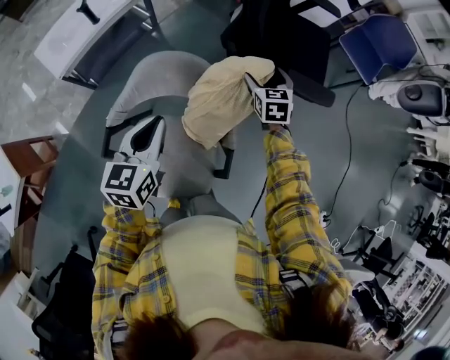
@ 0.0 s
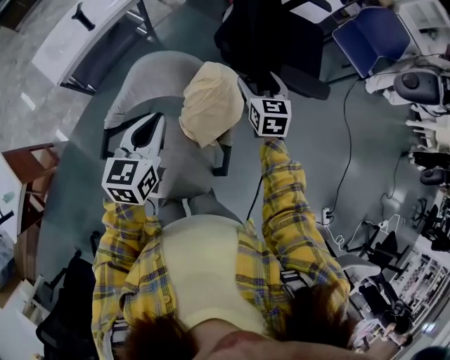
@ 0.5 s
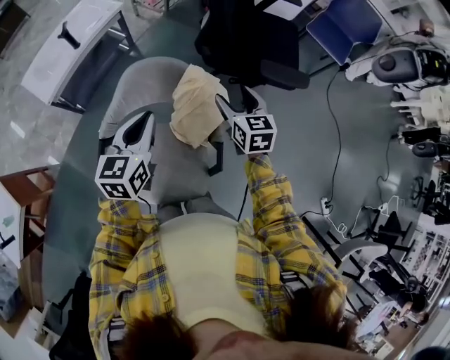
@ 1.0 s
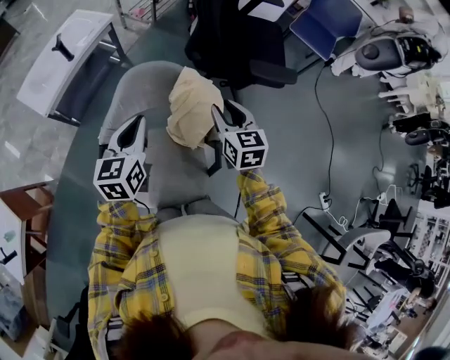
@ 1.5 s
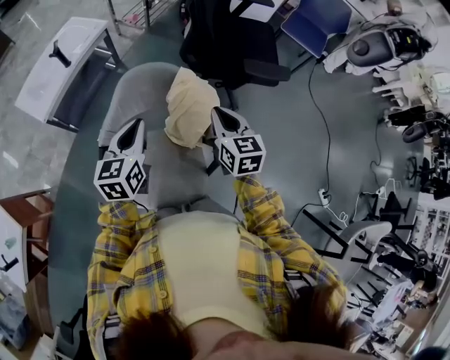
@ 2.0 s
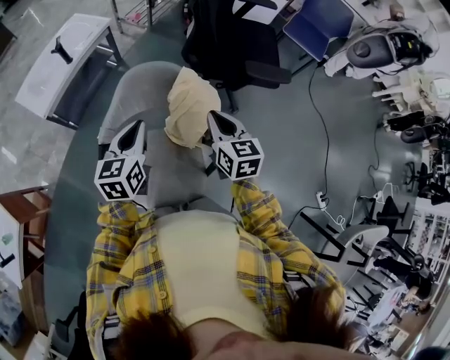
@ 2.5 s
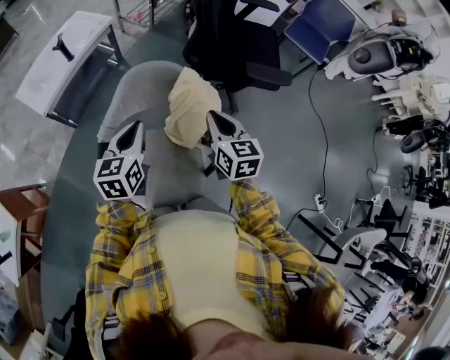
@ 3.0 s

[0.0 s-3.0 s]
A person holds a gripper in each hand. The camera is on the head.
0.0 to 1.5 s: The right gripper moves backward and upward, about 20 cm, and closes up.
1.5 to 3.0 s: The right gripper moves roughly 5 cm, and closes.

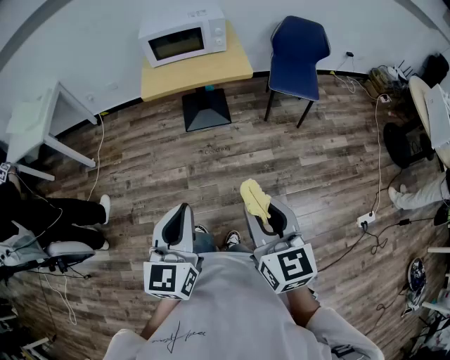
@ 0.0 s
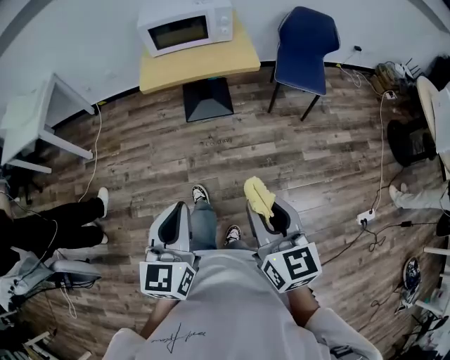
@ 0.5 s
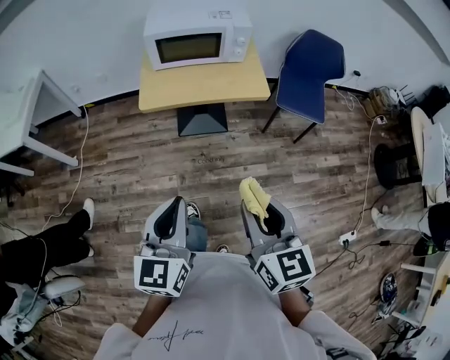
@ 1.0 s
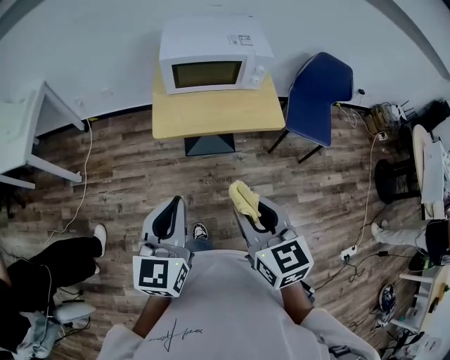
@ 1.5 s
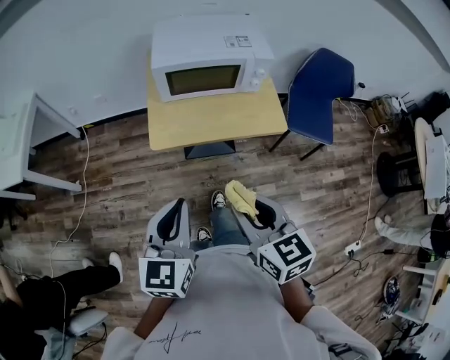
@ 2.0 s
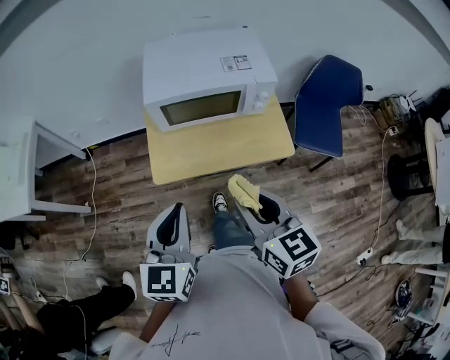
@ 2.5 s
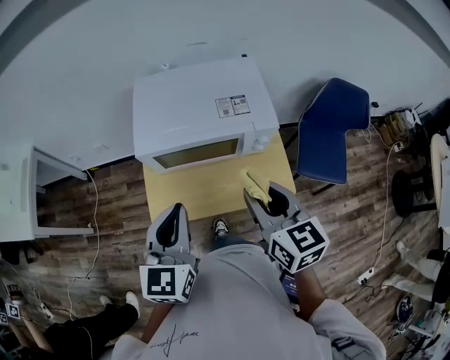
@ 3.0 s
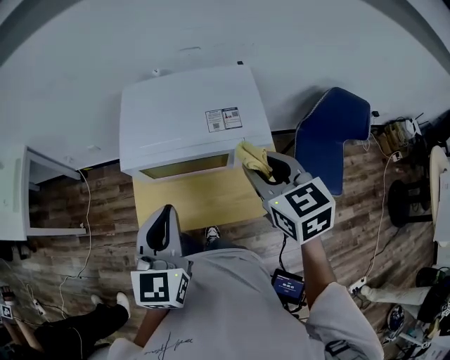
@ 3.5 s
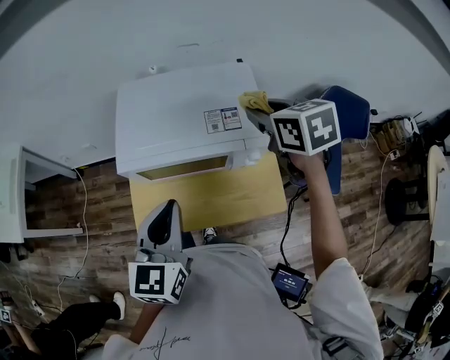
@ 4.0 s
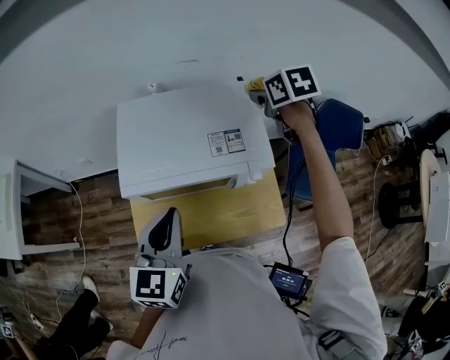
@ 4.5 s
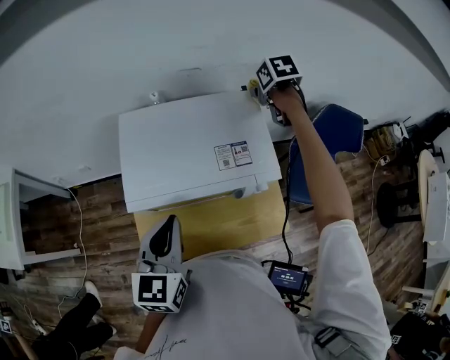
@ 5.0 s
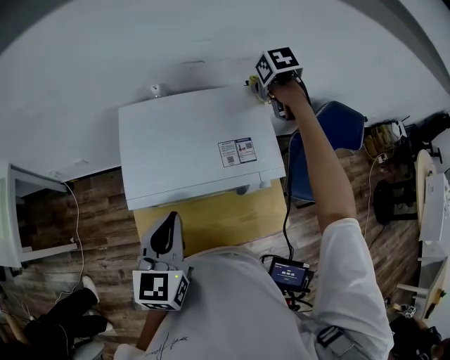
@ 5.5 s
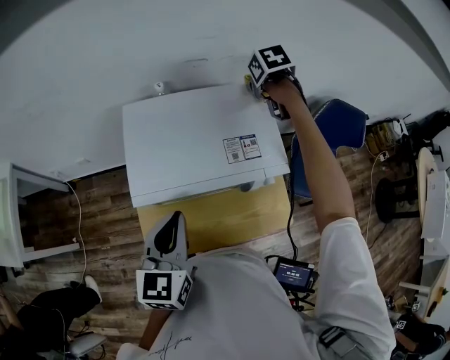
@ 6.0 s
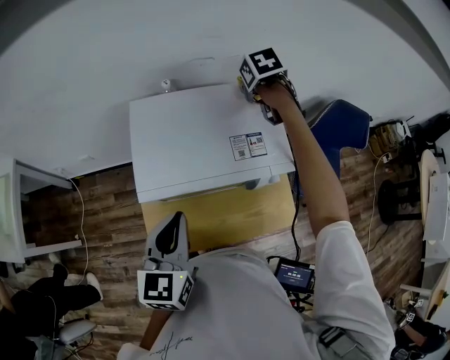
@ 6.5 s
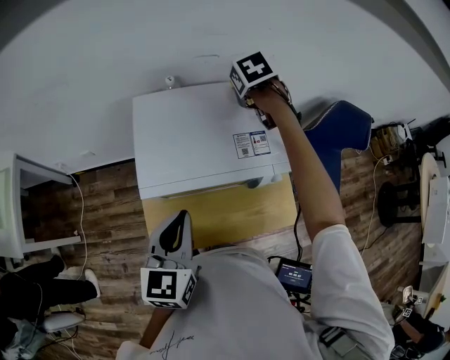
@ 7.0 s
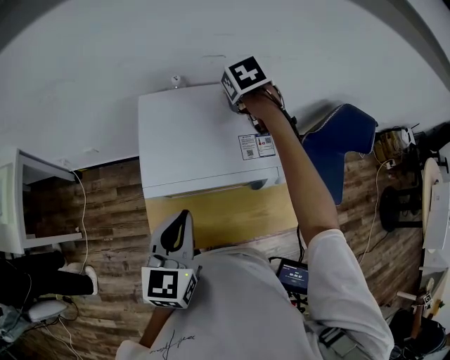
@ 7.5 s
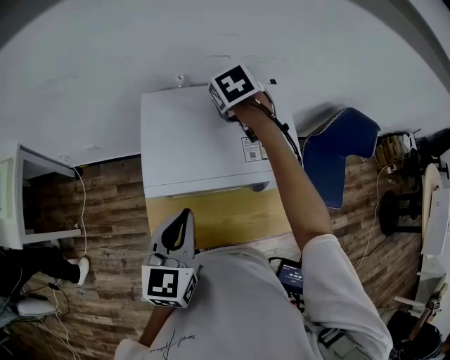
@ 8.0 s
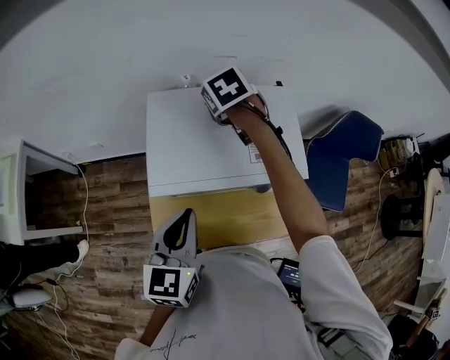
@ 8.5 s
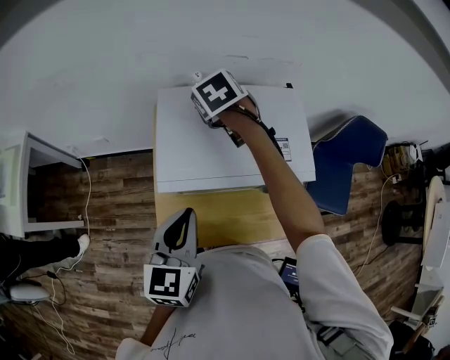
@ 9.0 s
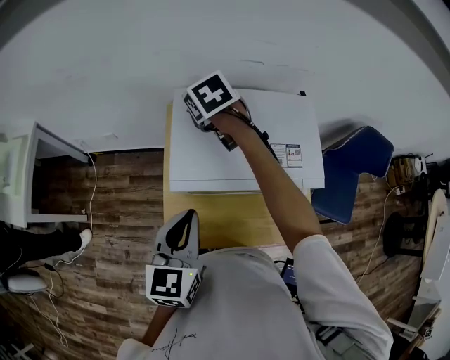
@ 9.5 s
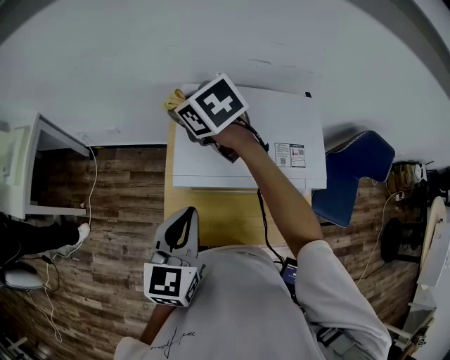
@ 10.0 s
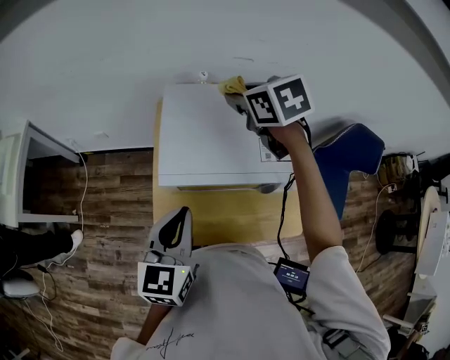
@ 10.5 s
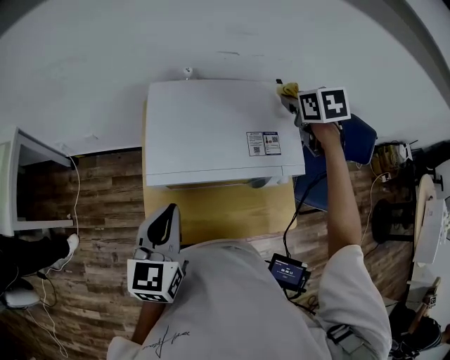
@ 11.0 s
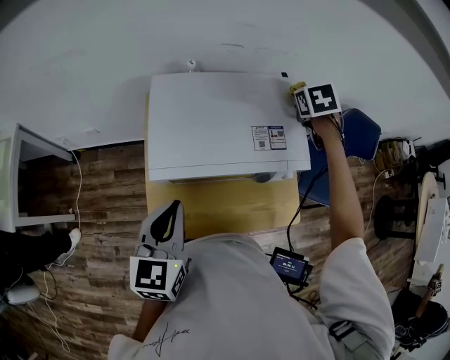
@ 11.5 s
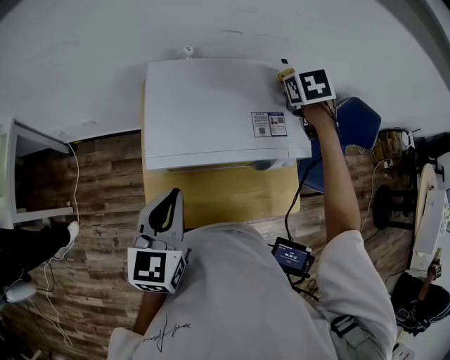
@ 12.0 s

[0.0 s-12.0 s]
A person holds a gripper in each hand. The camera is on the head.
0.0 to 2.0 s: The pair of grippers is taken forward, some 40 cm.
2.0 to 4.0 s: The left gripper shifts roughly 35 cm forward. Meanwhile the right gripper is displaced forward by approximately 50 cm.
4.0 to 6.0 s: The right gripper heads forward, covering roughly 20 cm, and swivels approximately 30 degrees. The left gripper goes about 10 cm forward and to the left.
6.0 to 8.0 s: The right gripper shifts some 15 cm to the left, and swivels some 20 degrees.
8.0 to 10.0 s: The right gripper changes place by roughly 25 cm, and turns by approximately 30 degrees; the left gripper ends up about 5 cm from where it was.
10.0 to 12.0 s: The right gripper moves roughly 40 cm, and swivels about 40 degrees.

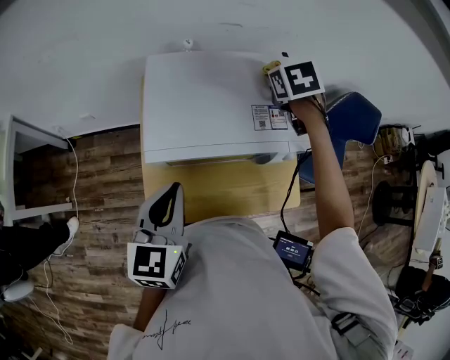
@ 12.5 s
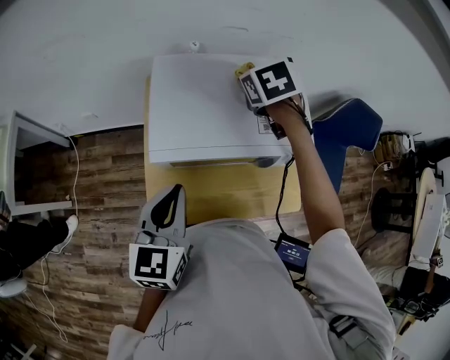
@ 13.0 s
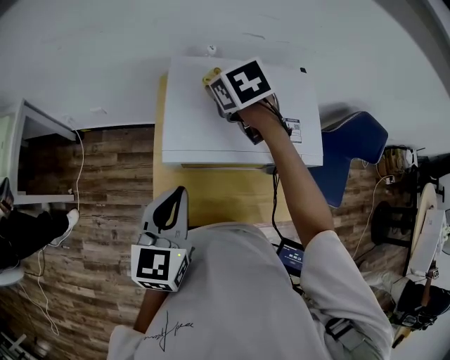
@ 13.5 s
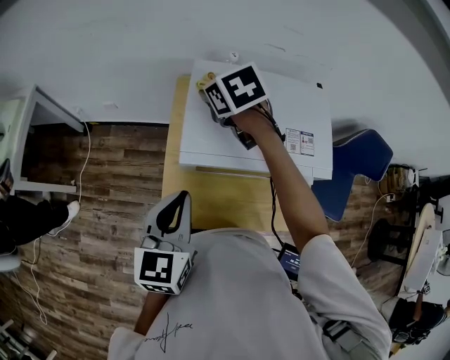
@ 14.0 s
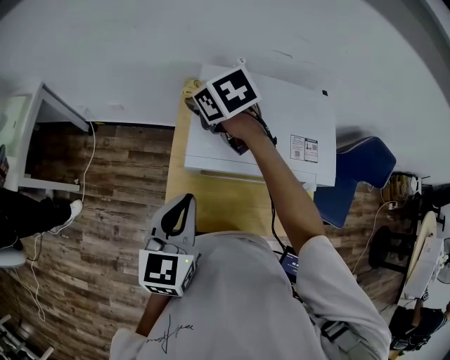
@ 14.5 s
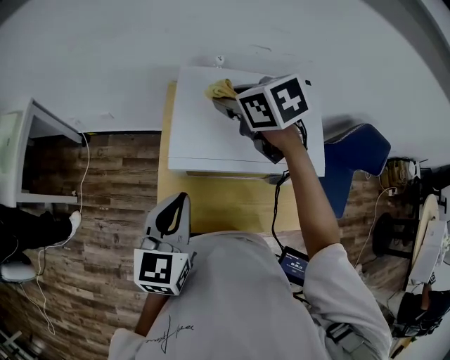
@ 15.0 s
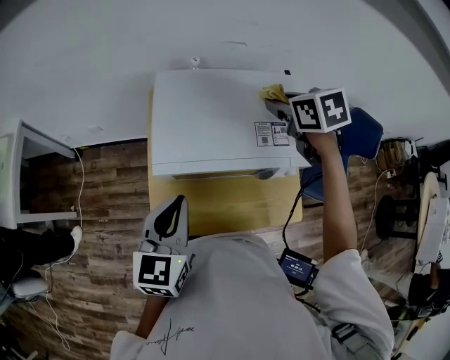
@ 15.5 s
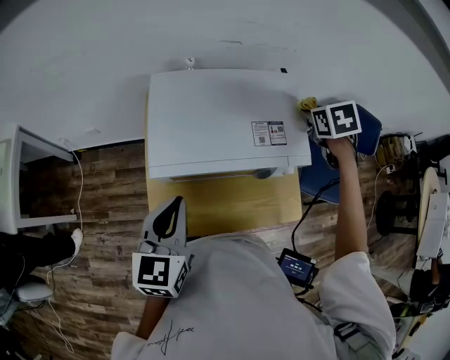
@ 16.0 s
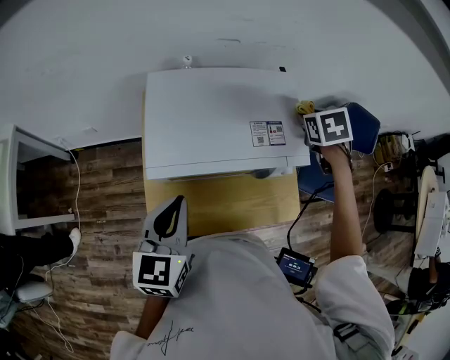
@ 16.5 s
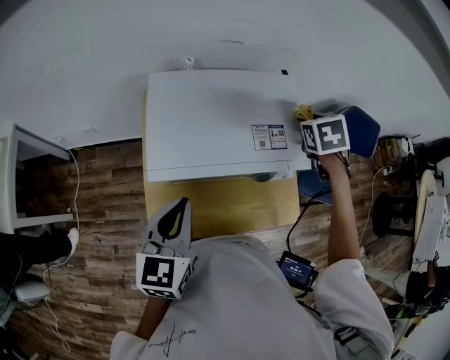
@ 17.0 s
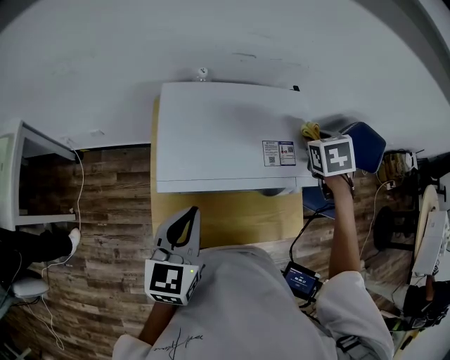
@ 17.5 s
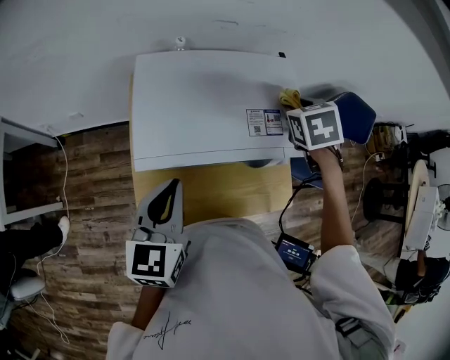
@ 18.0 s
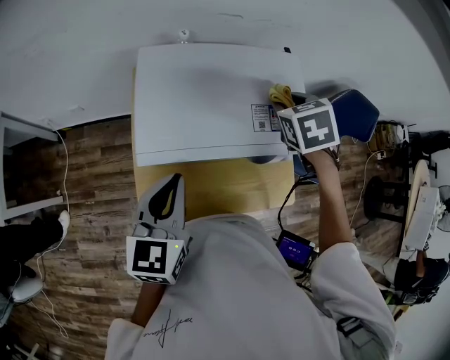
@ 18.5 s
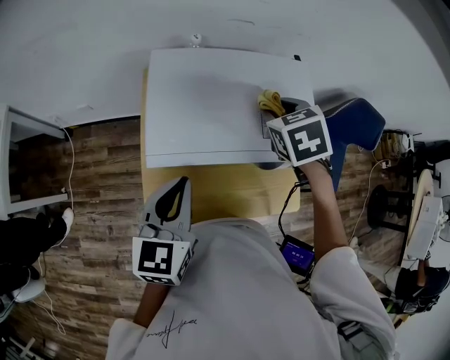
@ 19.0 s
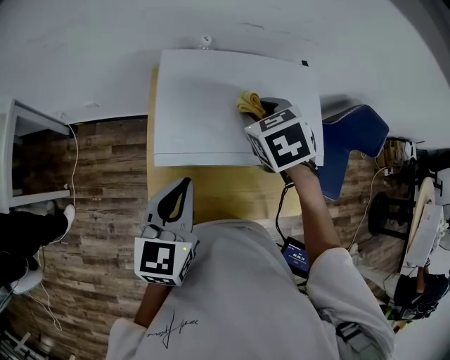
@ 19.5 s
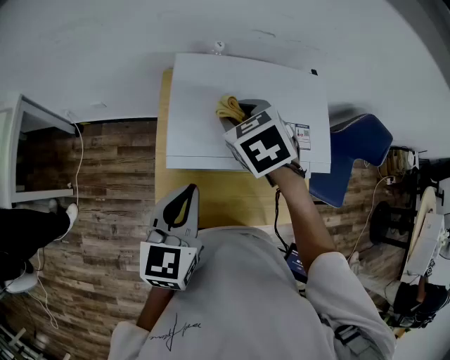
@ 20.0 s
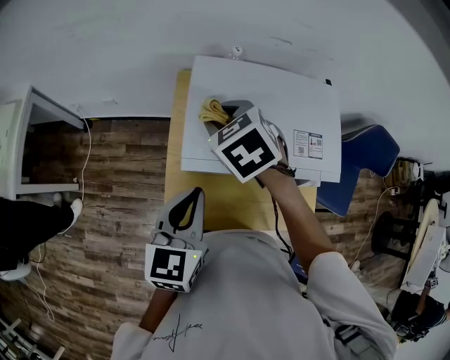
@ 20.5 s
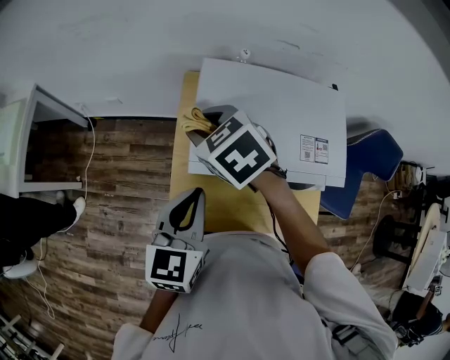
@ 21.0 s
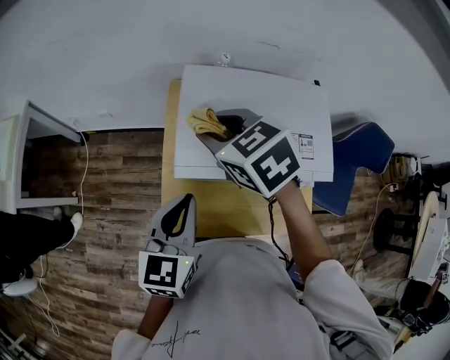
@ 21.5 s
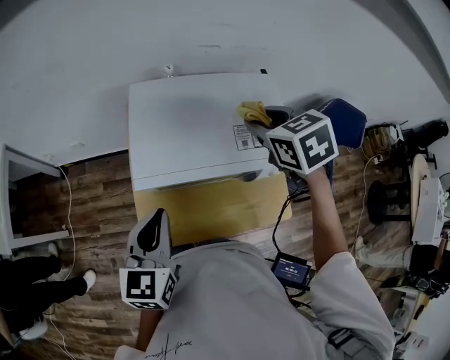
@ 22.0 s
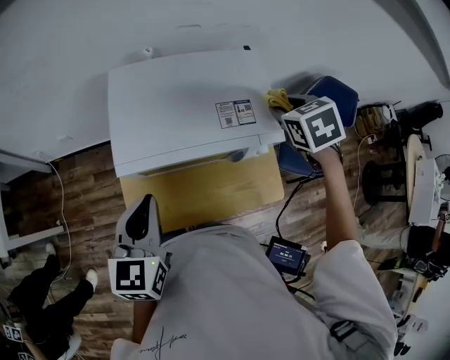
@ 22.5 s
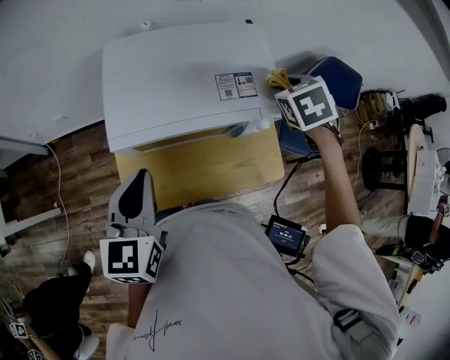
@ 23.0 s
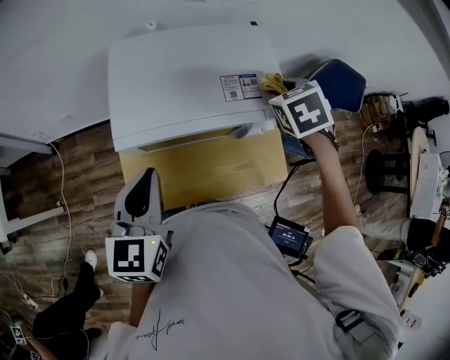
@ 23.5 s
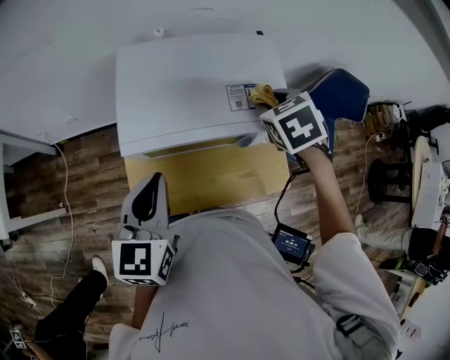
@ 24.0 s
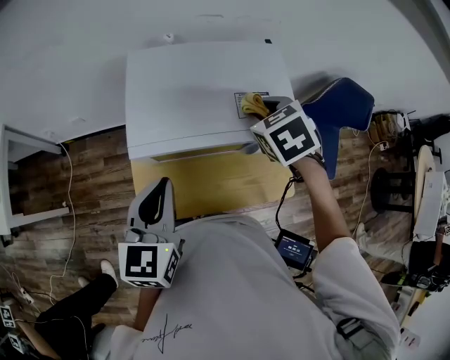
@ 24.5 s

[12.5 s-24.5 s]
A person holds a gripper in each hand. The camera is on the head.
12.5 to 14.5 s: The left gripper ends up approximately 5 cm from where it was, while the right gripper moves some 35 cm, and swivels roughly 40 degrees.
14.5 to 16.5 s: The left gripper moves approximately 5 cm. Meanwhile the right gripper shifts by roughly 40 cm, and swivels some 40 degrees.
16.5 to 18.5 s: The right gripper heads to the left, covering some 10 cm.
18.5 to 20.5 s: The right gripper travels to the left by roughly 30 cm, and rotates some 30 degrees; the left gripper shifts by some 5 cm.
20.5 to 22.5 s: The right gripper changes place by approximately 35 cm, and turns by approximately 30 degrees.
22.5 to 24.5 s: The right gripper travels to the left by some 10 cm.
